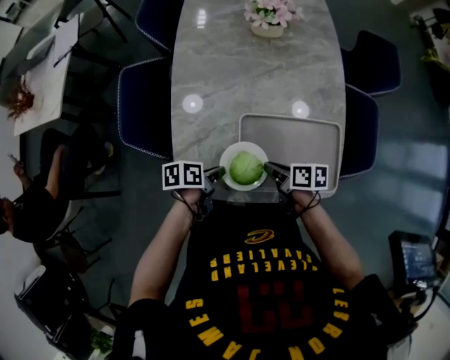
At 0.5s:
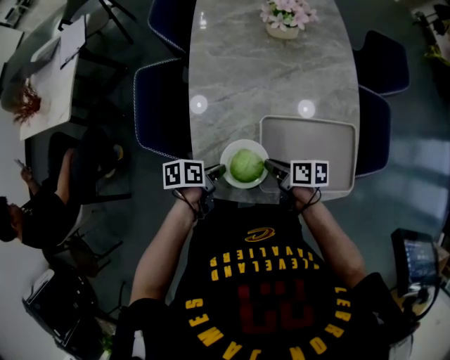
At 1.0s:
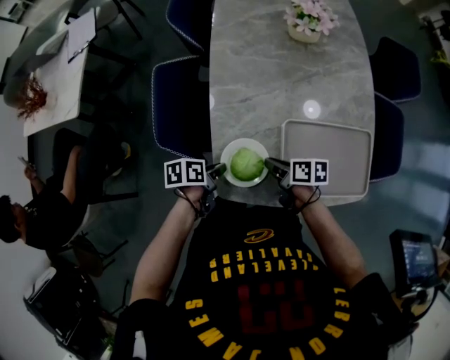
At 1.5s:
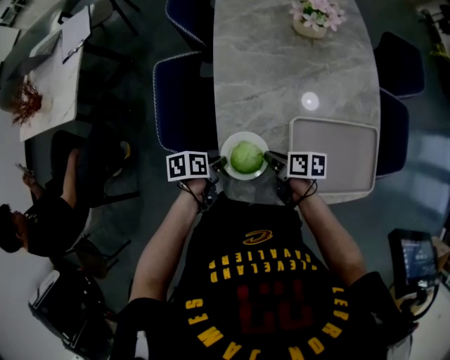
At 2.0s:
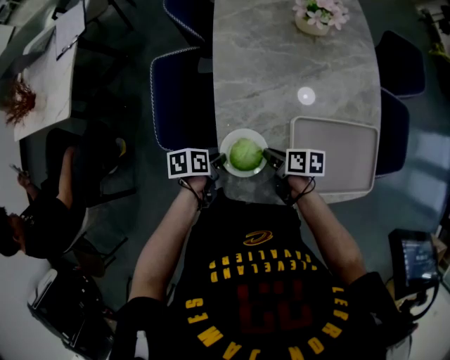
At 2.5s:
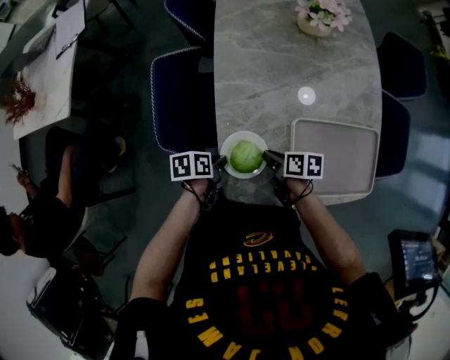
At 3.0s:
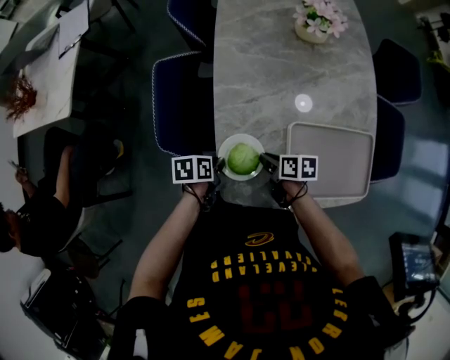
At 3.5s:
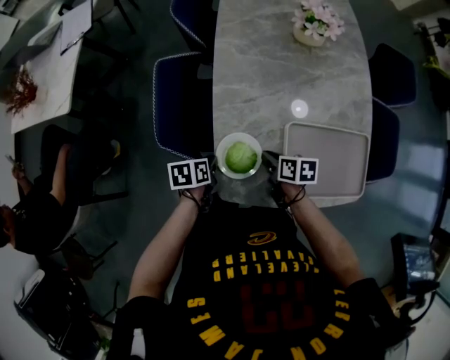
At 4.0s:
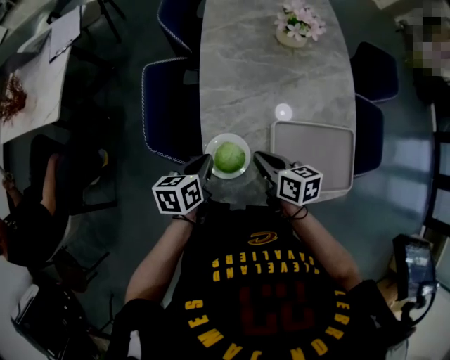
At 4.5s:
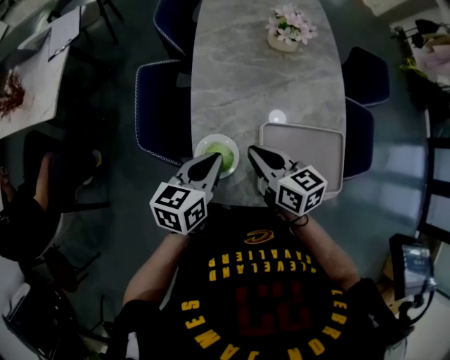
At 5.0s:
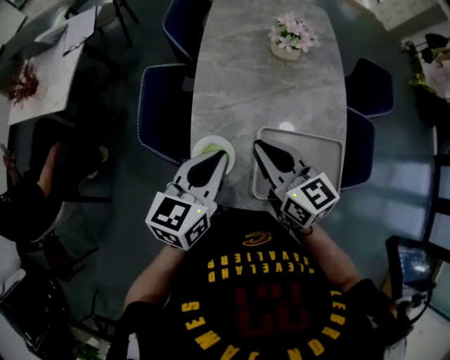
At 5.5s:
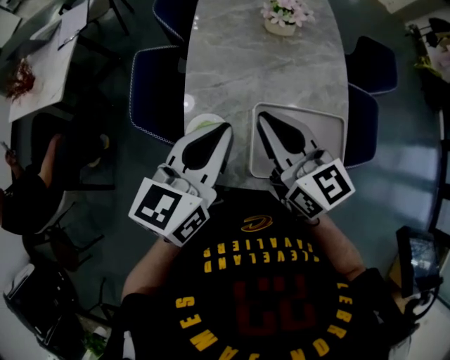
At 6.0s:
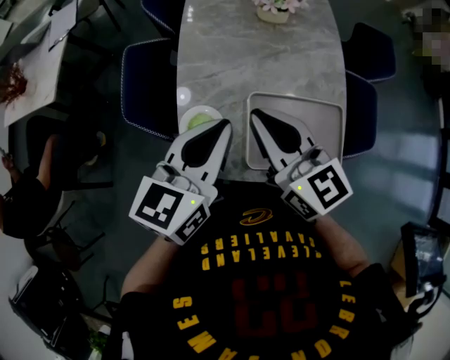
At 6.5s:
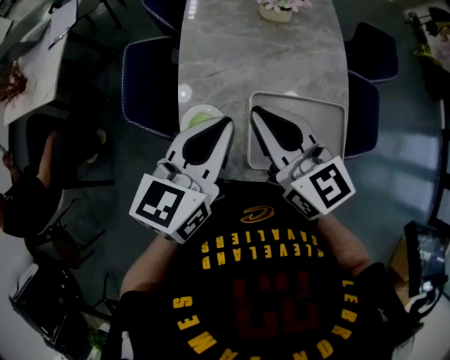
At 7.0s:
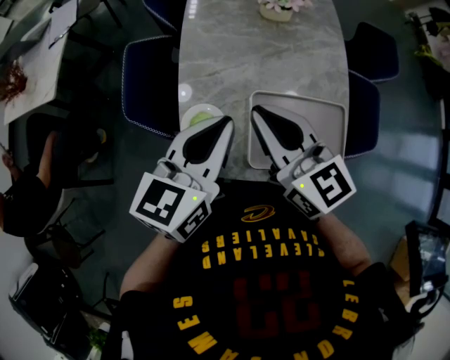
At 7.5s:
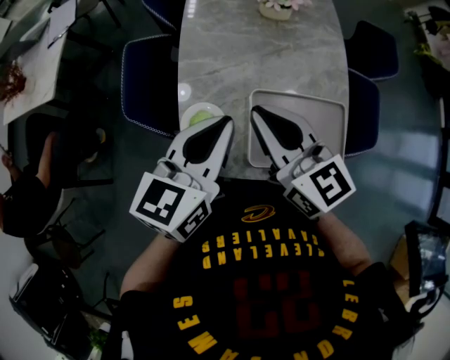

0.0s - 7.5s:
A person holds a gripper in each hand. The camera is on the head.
0.0s - 2.0s: The left gripper ends up approximately 20 cm from where it was. Meanwhile the right gripper changes place by roughly 20 cm.
2.0s - 4.0s: The grippers both shift upward by about 10 cm. The left gripper changes its angle by roughly 30 degrees; the right gripper changes its angle by some 30 degrees.
4.0s - 5.5s: The left gripper heads upward and to the right, covering some 30 cm, and swivels some 40 degrees. The right gripper travels upward by about 25 cm, and rotates approximately 40 degrees.
5.5s - 7.5s: There are only small adjustments of the grippers.

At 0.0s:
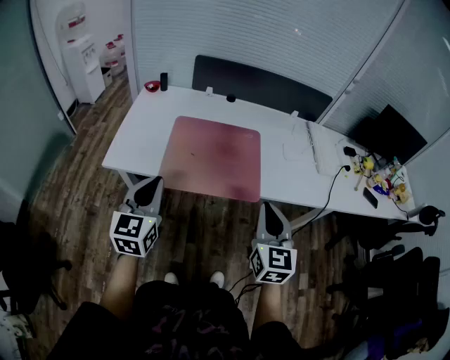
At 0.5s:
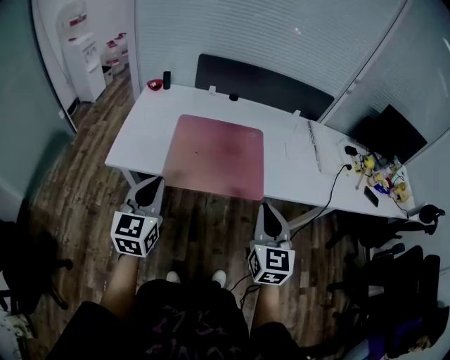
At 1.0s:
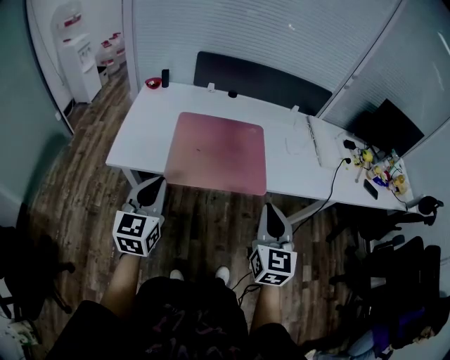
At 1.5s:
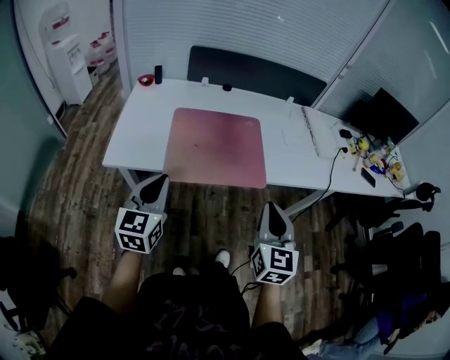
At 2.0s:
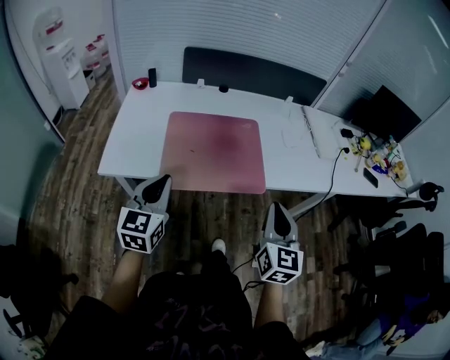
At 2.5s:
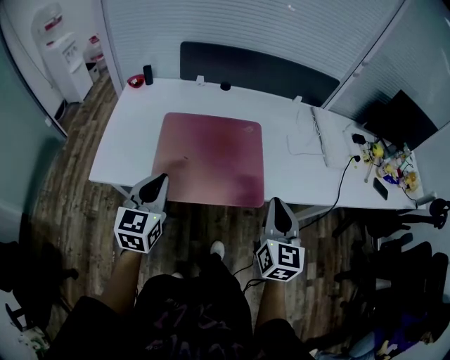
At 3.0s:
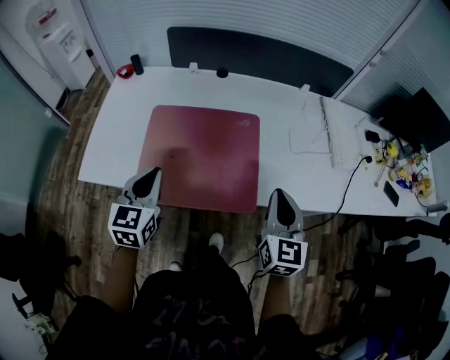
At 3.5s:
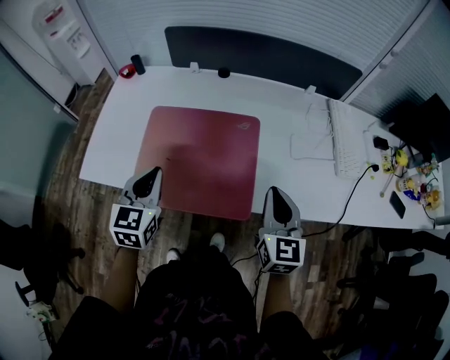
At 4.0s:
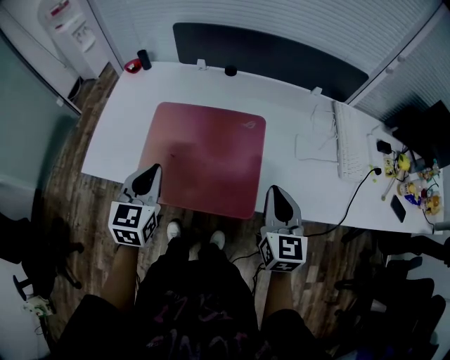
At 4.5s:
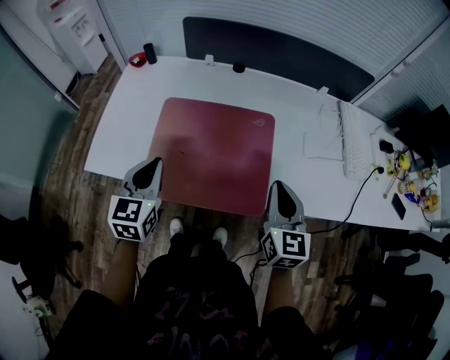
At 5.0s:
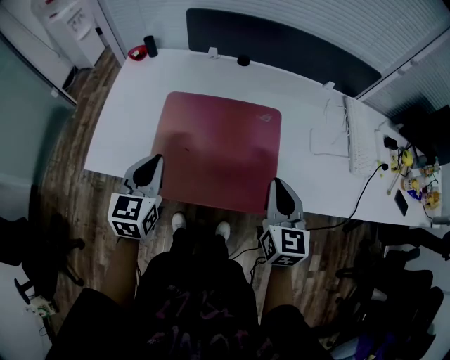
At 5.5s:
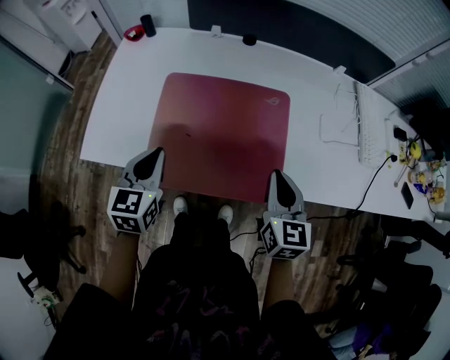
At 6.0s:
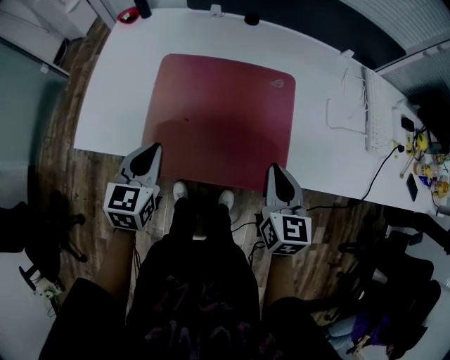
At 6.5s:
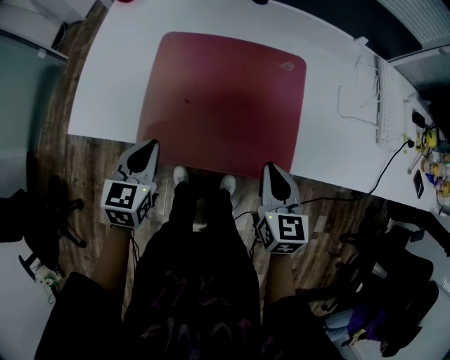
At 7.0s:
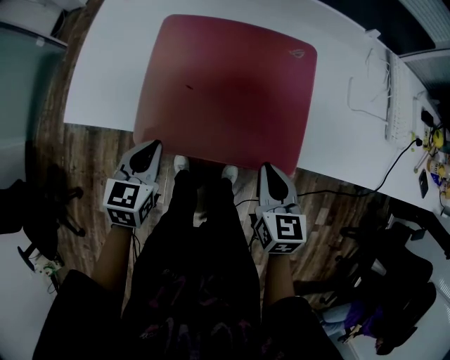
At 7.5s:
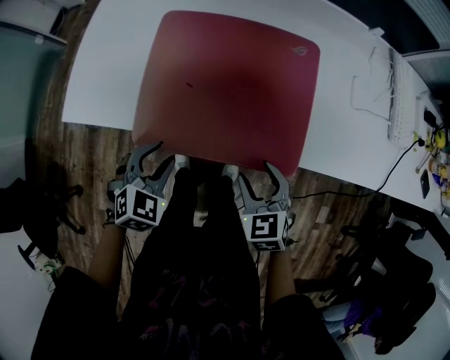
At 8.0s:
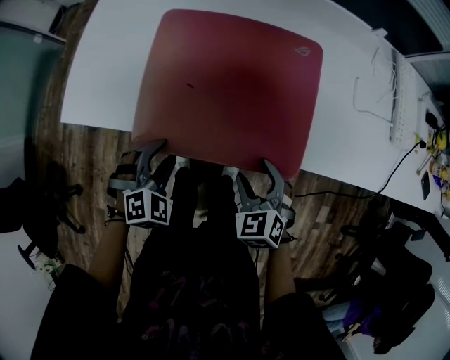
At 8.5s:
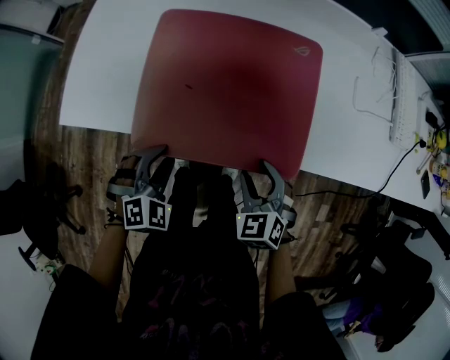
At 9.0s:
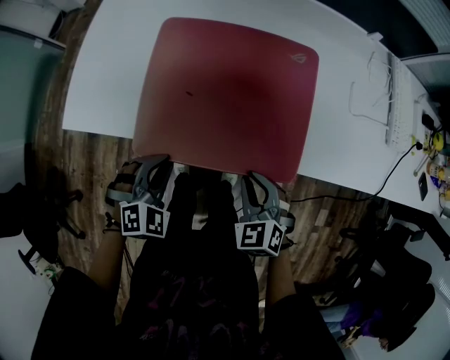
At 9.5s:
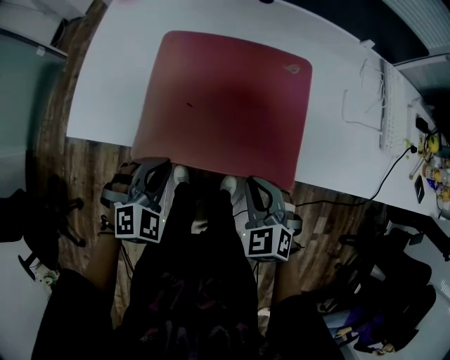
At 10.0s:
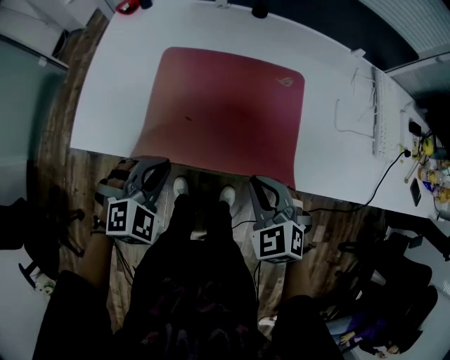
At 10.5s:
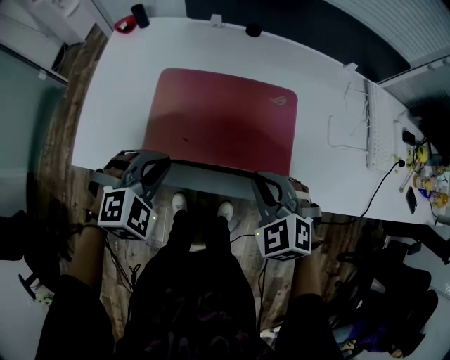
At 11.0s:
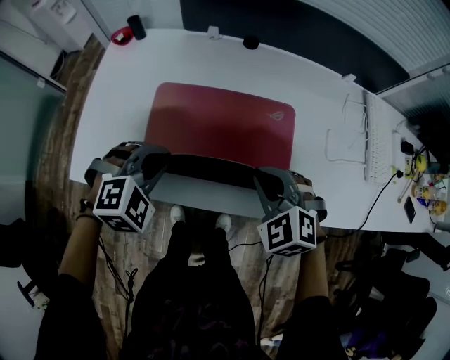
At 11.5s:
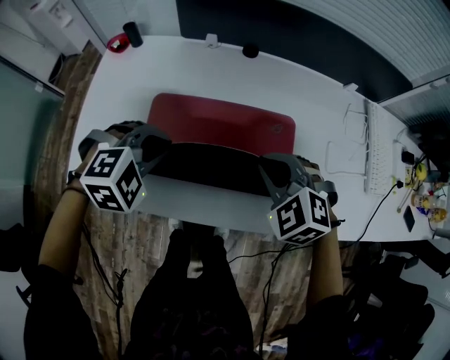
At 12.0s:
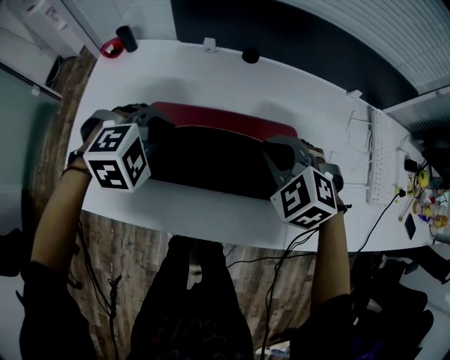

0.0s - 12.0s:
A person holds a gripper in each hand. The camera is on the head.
2.0s - 4.0s: The left gripper goes some 20 cm forward and to the right. The right gripper heads forward, covering roughly 25 cm.
4.0s - 6.0s: The right gripper is displaced to the left and downward by about 10 cm. The left gripper shifts roughly 10 cm downward and to the left.
6.0s - 8.0s: The right gripper heads downward, to the left and backward, covering about 15 cm, rotates roughly 50 degrees, and opens up. The left gripper moves downward and backward, approximately 15 cm, rolls clockwise, seen from behind, by some 50 degrees, and opens its fingers.
8.0s - 10.0s: Both grippers travel together upward, roughly 10 cm. The right gripper closes its fingers. The left gripper closes its fingers.
10.0s - 12.0s: Both grippers travel together forward, approximately 25 cm. The left gripper swivels approximately 20 degrees.

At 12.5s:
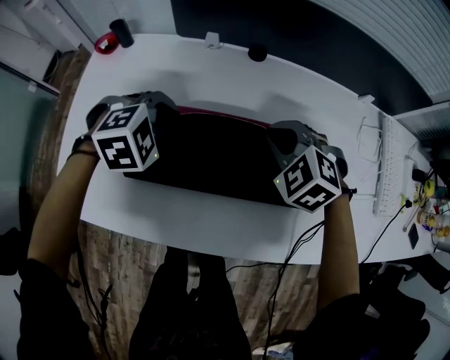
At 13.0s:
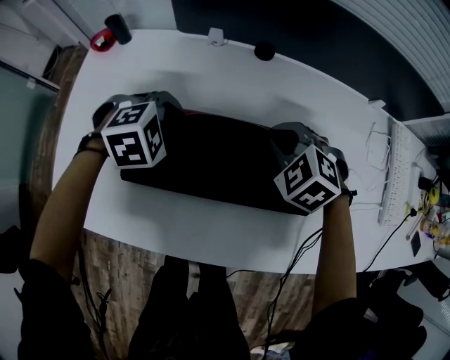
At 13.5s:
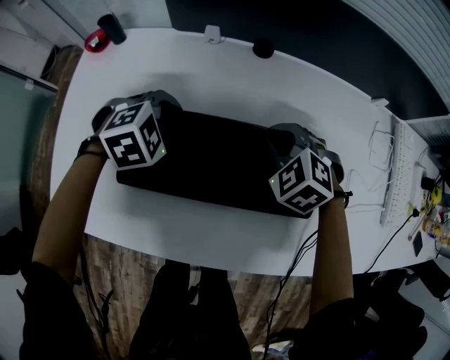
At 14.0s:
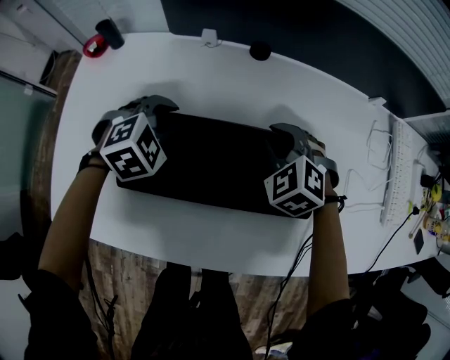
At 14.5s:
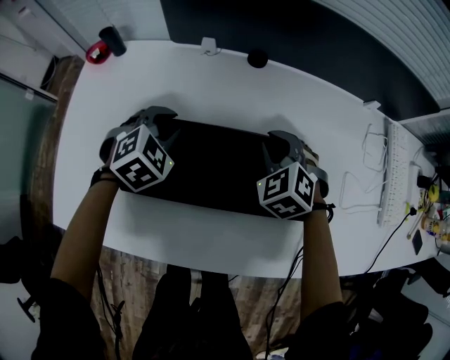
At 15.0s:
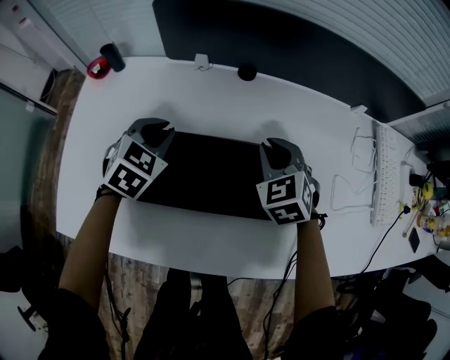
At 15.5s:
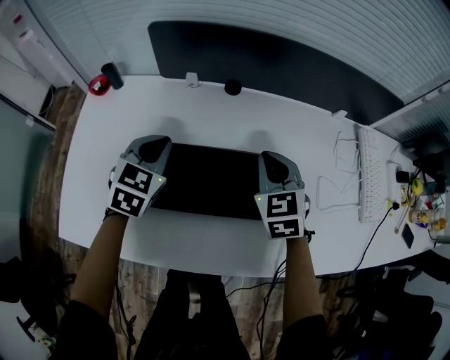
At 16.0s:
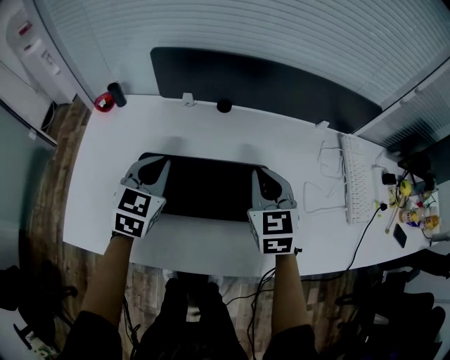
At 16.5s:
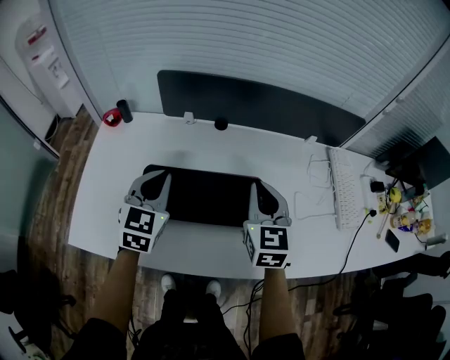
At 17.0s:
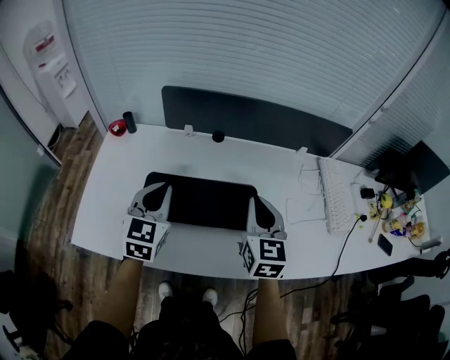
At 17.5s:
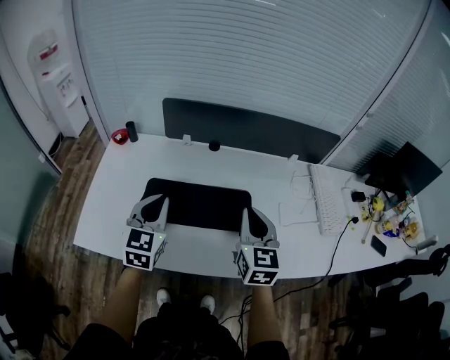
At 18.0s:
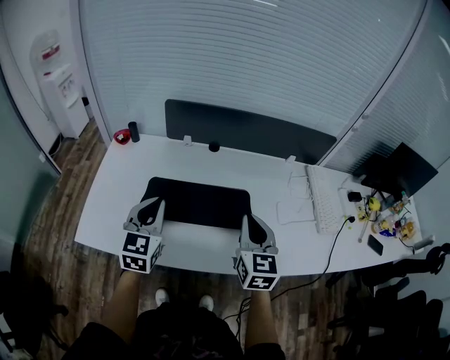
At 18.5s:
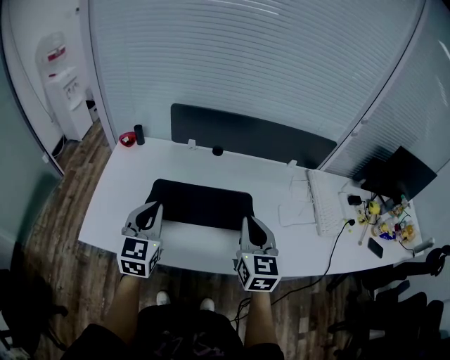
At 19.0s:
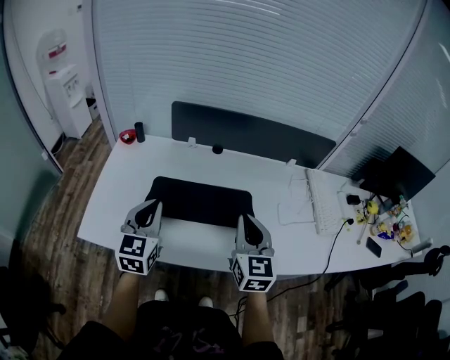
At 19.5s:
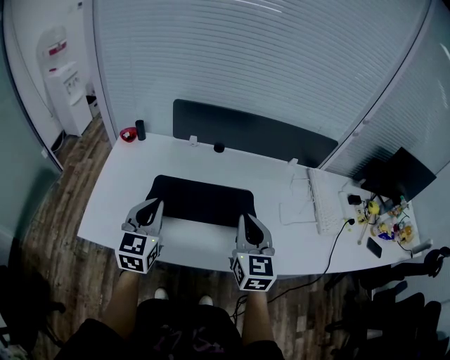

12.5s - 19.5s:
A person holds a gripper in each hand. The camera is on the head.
12.5s - 14.5s: The two grippers go some 5 cm downward. The left gripper swivels approximately 20 degrees.
14.5s - 16.0s: The two grippers go approximately 15 cm upward and backward. The left gripper changes its angle by approximately 40 degrees. The right gripper swivels some 40 degrees.
16.0s - 17.5s: Both grippers travel together backward and upward, approximately 15 cm.
17.5s - 19.5s: Both grippers travel together backward, approximately 5 cm.
